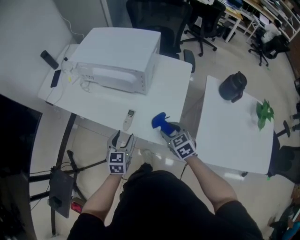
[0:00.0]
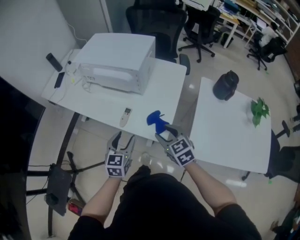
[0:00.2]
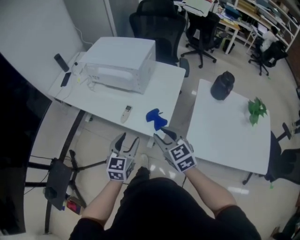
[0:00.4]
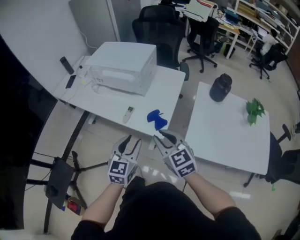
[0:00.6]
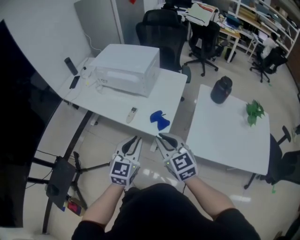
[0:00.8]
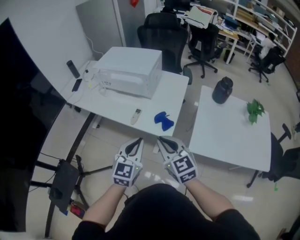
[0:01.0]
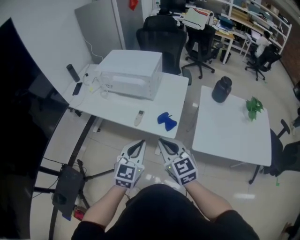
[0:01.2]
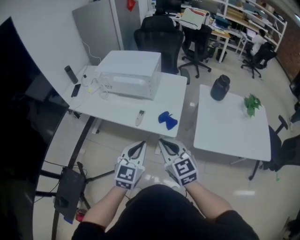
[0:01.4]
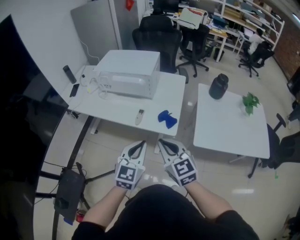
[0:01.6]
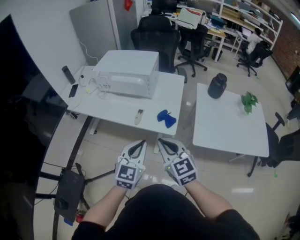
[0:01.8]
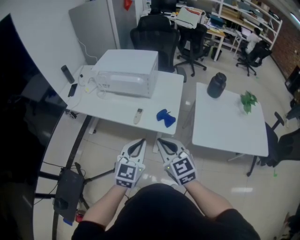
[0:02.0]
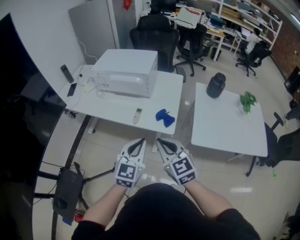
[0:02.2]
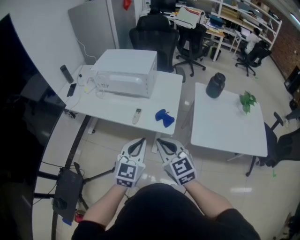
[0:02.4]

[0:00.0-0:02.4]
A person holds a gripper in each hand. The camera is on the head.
0.0 to 1.2 s: The left gripper heads backward and upward, covering some 25 cm, turns by approximately 20 degrees, and closes its fingers; the right gripper travels backward, upward and to the left by roughly 30 cm, turns by about 30 degrees, and closes its fingers.
1.2 to 2.4 s: There are only small adjustments of the grippers.

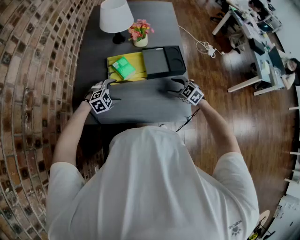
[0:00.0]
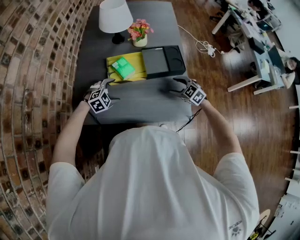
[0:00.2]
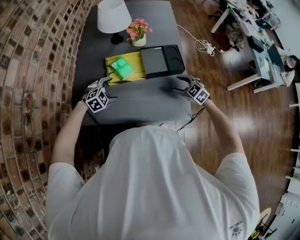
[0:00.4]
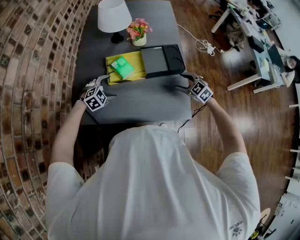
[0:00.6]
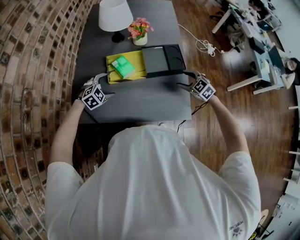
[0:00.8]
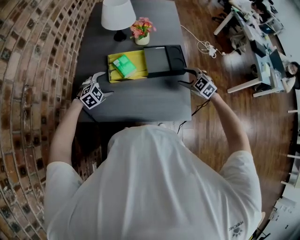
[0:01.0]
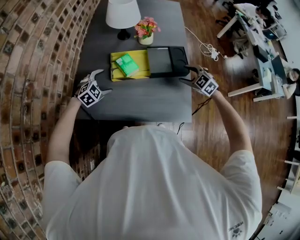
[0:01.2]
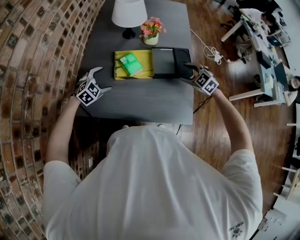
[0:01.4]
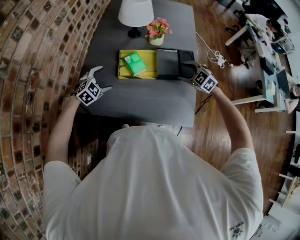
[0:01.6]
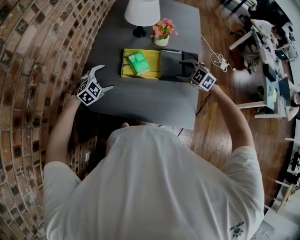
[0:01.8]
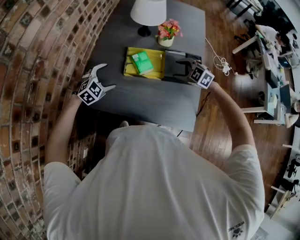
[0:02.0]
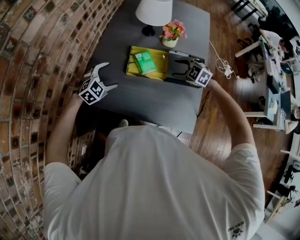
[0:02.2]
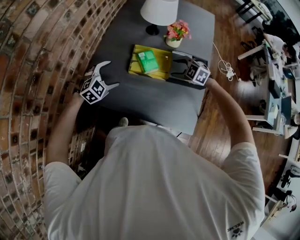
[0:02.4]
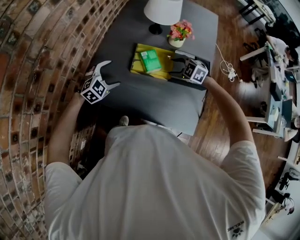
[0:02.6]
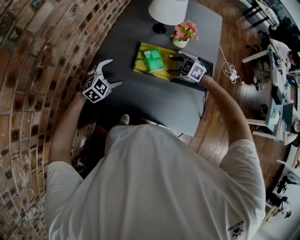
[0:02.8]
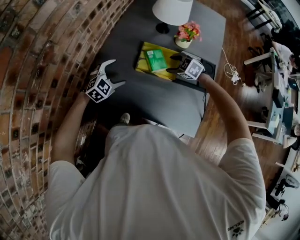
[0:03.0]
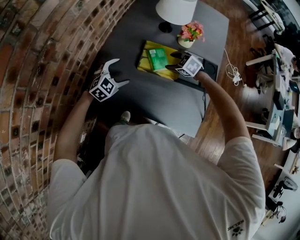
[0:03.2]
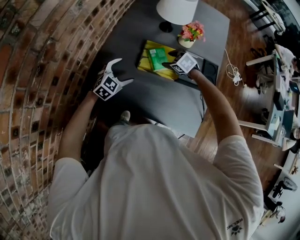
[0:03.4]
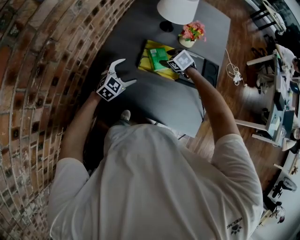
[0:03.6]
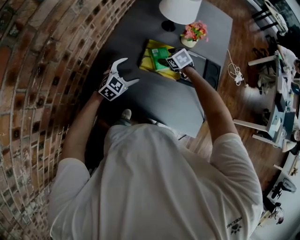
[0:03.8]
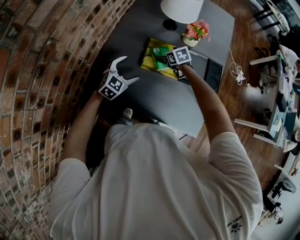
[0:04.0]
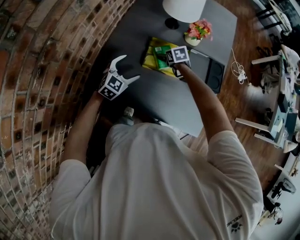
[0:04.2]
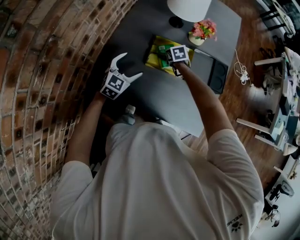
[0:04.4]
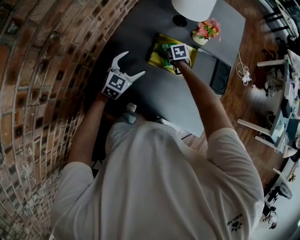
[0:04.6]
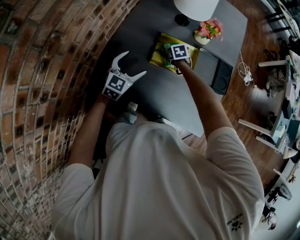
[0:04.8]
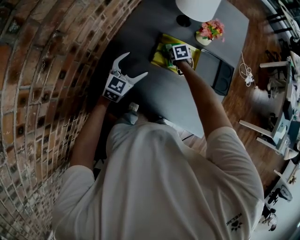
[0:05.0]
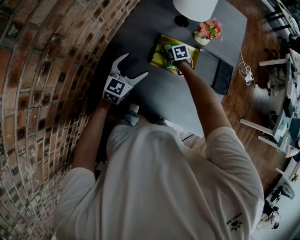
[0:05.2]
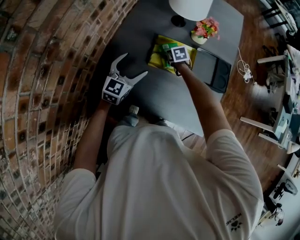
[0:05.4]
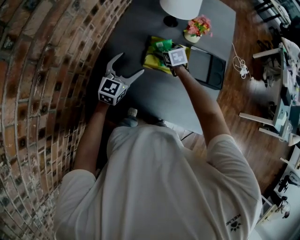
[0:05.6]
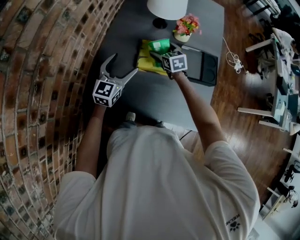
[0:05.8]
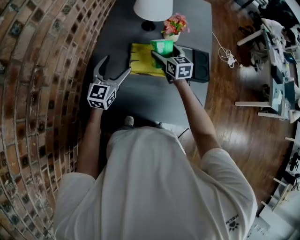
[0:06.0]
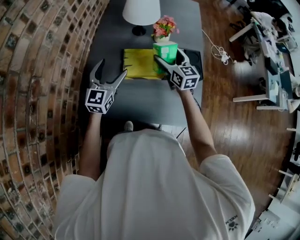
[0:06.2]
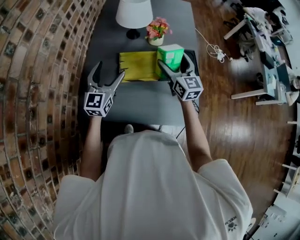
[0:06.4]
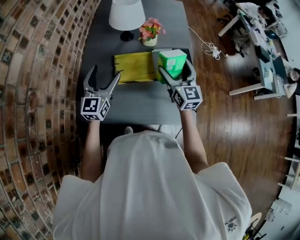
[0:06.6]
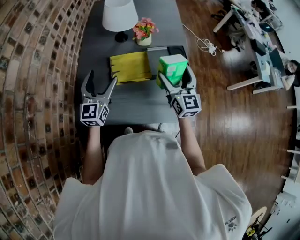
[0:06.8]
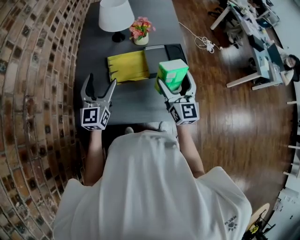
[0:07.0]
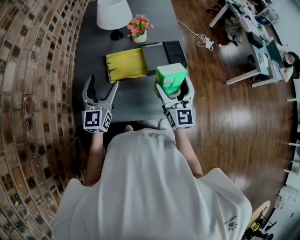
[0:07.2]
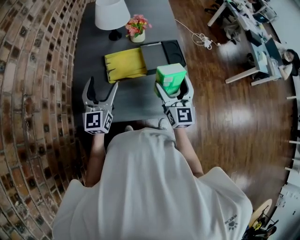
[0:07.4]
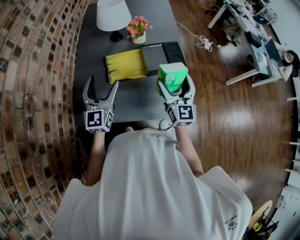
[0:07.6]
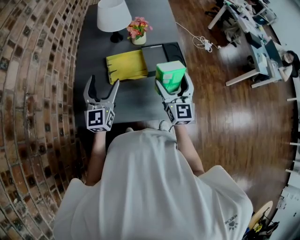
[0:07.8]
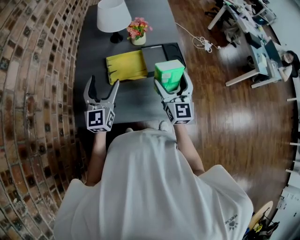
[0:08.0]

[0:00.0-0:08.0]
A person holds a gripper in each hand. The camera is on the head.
0.0 to 1.6 s: The left gripper moves to the left and upward, some 10 cm, and turns by roughly 20 degrees, while the right gripper goes some 10 cm upward and forward.
1.6 to 3.2 s: The right gripper shifts approximately 20 cm to the left, forward and downward.
3.2 to 4.8 s: The right gripper travels downward, forward and to the left by roughly 15 cm, twists approximately 40 degrees clockwise, seen from behind, and opens up. The left gripper swivels some 20 degrees.
4.8 to 6.4 s: The left gripper heads upward, covering approximately 10 cm, and changes its angle by some 20 degrees. Meanwhile the right gripper goes approximately 35 cm upward and to the right, and points its fingers approximately 60 degrees further upward.
6.4 to 8.0 s: The right gripper goes roughly 15 cm backward and to the right, and rotates about 20 degrees. The left gripper heads backward, covering some 5 cm.

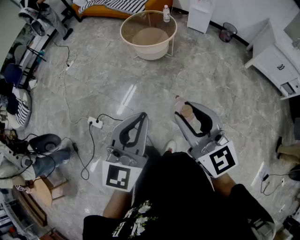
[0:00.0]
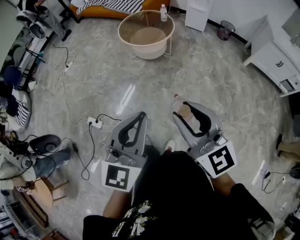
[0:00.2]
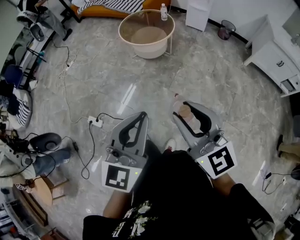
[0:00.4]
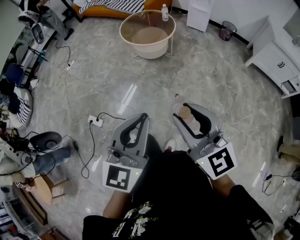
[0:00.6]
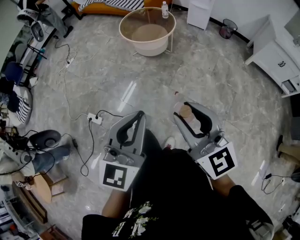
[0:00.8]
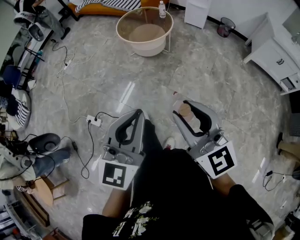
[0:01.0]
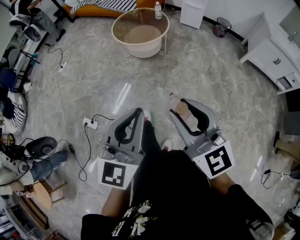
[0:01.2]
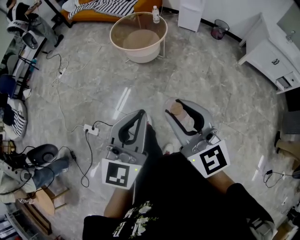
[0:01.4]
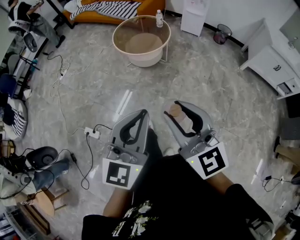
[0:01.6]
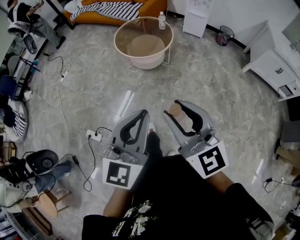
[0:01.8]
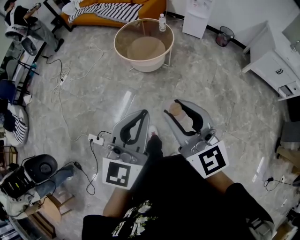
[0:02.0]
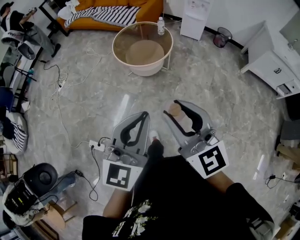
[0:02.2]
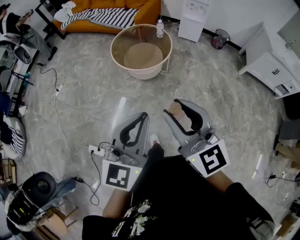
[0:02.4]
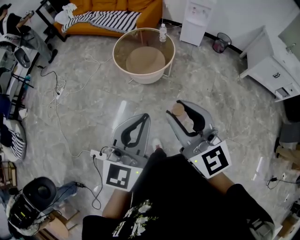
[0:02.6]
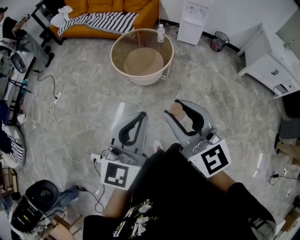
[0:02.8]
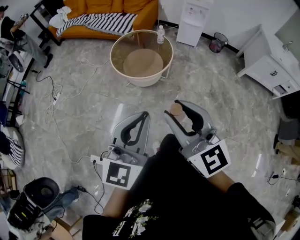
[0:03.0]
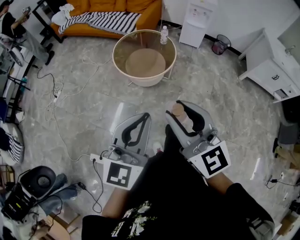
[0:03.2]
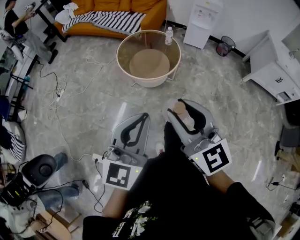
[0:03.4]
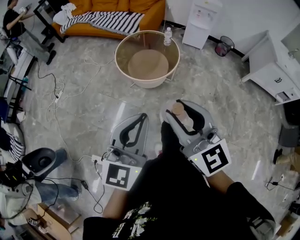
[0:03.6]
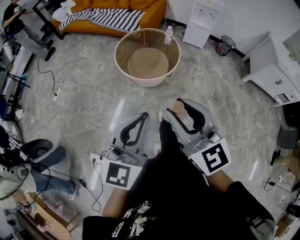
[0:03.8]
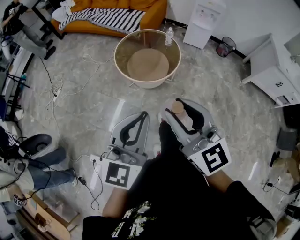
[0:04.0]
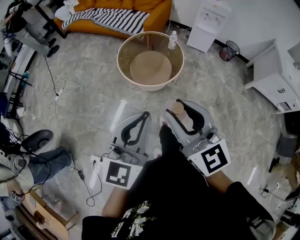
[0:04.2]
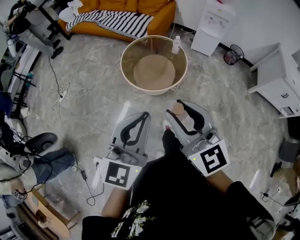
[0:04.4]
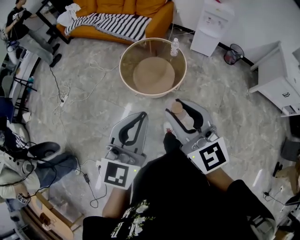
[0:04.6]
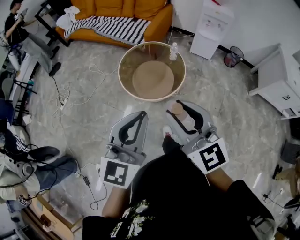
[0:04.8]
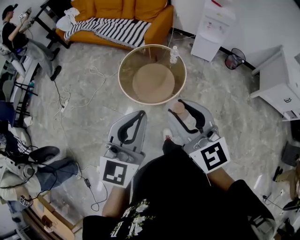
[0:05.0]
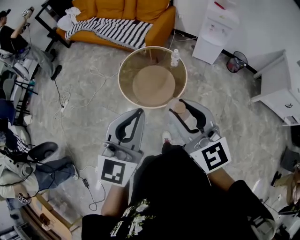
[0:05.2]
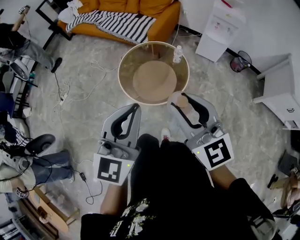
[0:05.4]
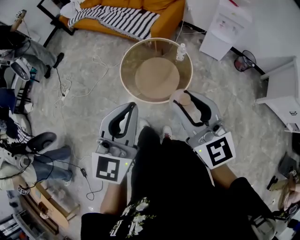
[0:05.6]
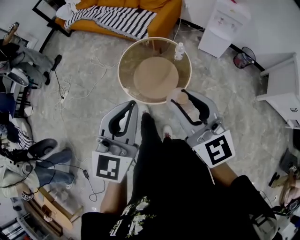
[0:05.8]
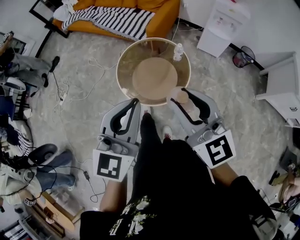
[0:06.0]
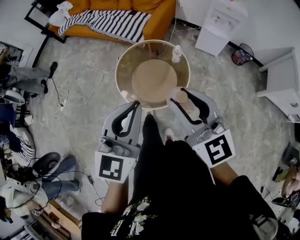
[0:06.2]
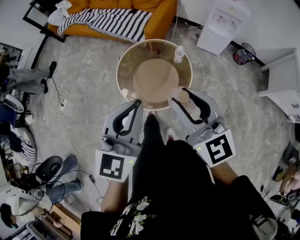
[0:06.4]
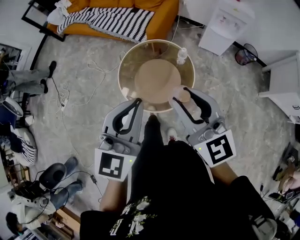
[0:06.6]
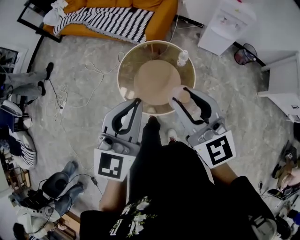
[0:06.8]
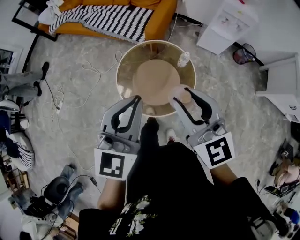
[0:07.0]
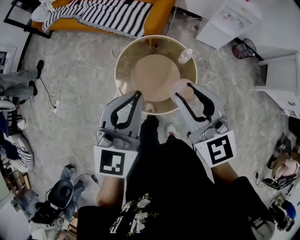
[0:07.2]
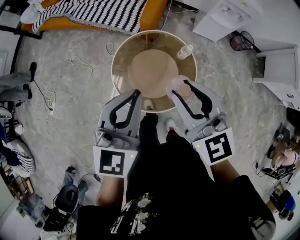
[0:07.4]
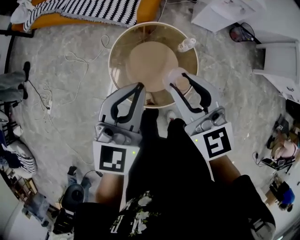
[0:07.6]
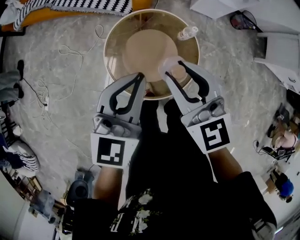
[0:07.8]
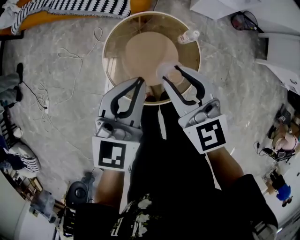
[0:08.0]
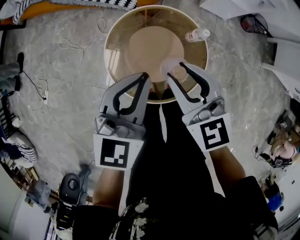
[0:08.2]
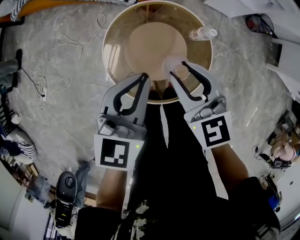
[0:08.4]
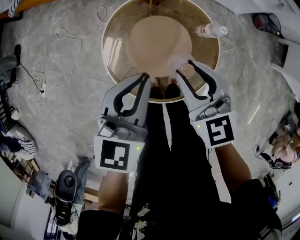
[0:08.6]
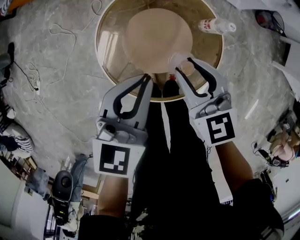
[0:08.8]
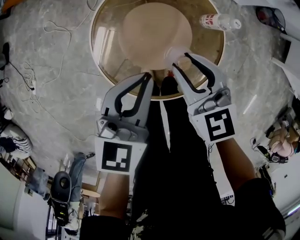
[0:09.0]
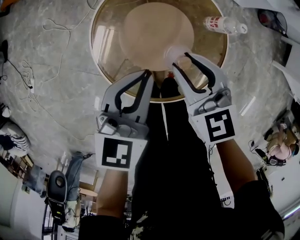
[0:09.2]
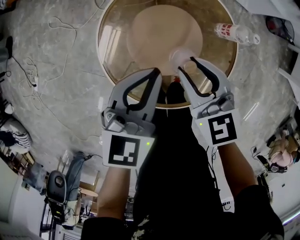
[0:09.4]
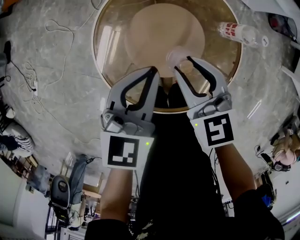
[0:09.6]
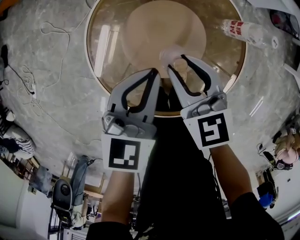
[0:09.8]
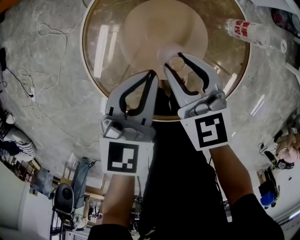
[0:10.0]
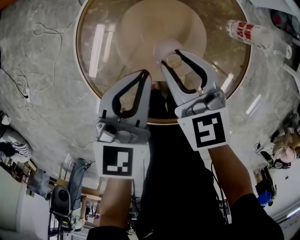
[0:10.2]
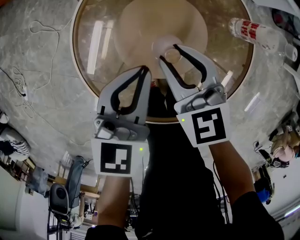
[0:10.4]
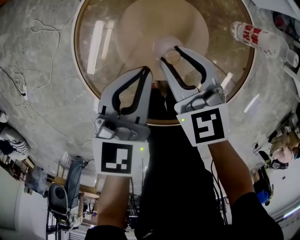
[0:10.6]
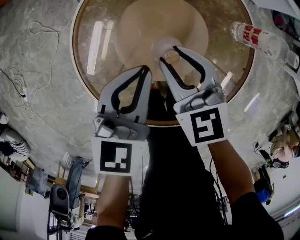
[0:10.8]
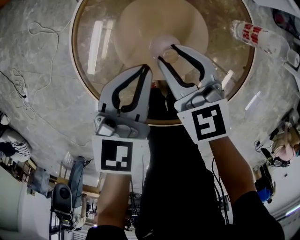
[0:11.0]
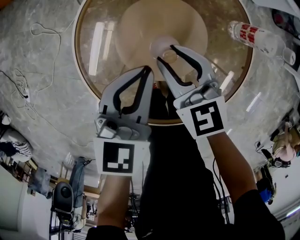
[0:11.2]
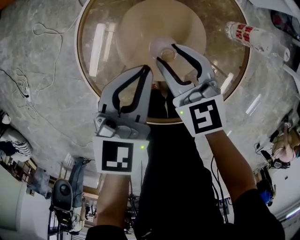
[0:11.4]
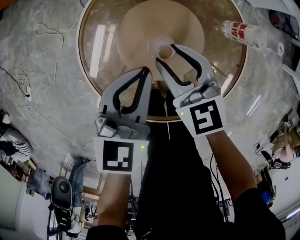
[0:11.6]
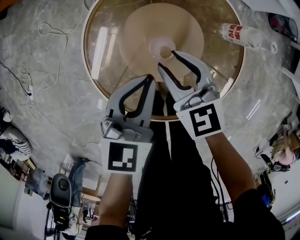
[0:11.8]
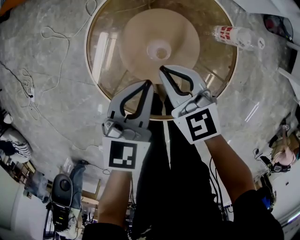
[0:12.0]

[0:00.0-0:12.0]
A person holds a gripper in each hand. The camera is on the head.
0.0 to 1.6 s: Both grippers travel together forward, about 10 cm.
1.6 to 3.0 s: The two grippers go roughly 30 cm forward and to the left.
3.0 to 4.4 s: The grippers both shift forward by roughly 20 cm.
4.4 to 6.0 s: The right gripper goes about 30 cm forward and to the right. The left gripper goes some 30 cm forward.
6.0 to 7.6 s: The right gripper goes about 35 cm forward and to the left. The left gripper shifts about 35 cm forward.
7.6 to 9.0 s: The two grippers go roughly 35 cm downward. The left gripper rotates about 20 degrees.
9.0 to 10.4 s: Both grippers travel together downward, approximately 20 cm.
10.4 to 12.0 s: Both grippers move upward, about 5 cm. The right gripper closes.

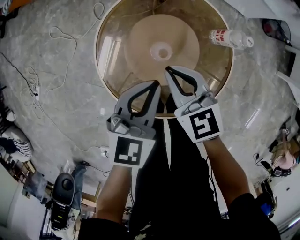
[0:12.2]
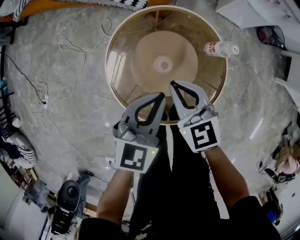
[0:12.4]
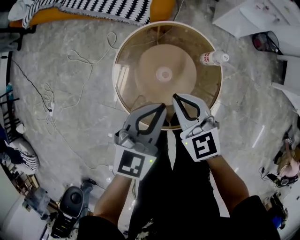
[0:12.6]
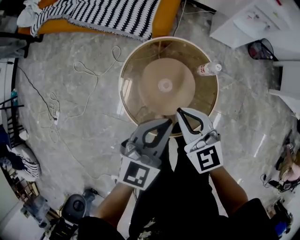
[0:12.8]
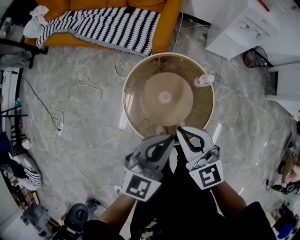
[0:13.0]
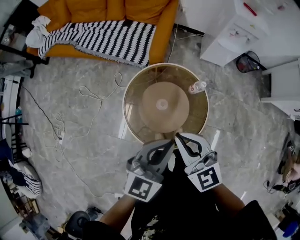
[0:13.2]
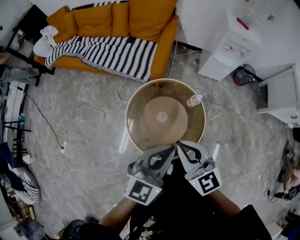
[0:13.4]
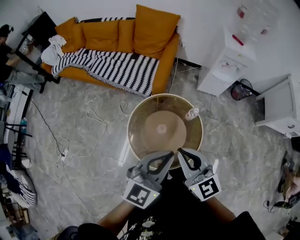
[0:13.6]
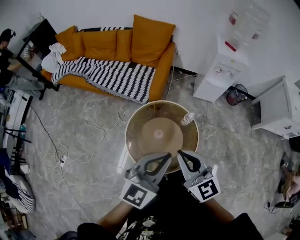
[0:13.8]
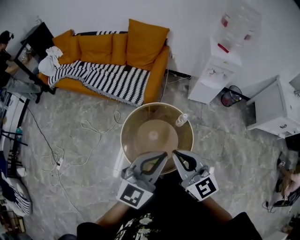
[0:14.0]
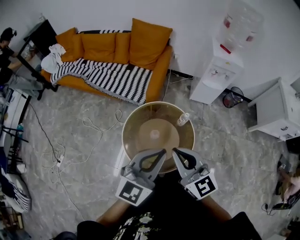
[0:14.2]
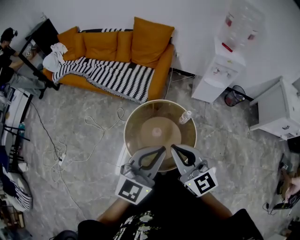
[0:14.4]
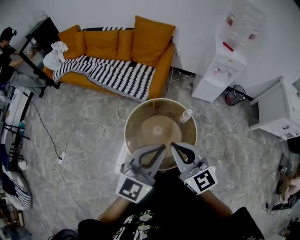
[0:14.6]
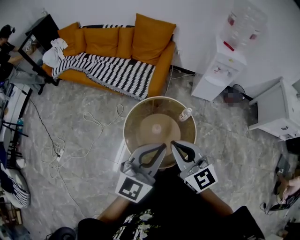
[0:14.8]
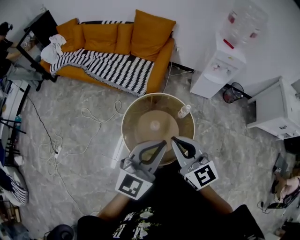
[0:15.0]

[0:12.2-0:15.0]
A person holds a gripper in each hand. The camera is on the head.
12.2 to 13.6 s: Both grippers travel together upward, about 50 cm. The right gripper turns by roughly 30 degrees; the left gripper swivels roughly 30 degrees.
13.6 to 15.0 s: The left gripper heads upward, covering about 5 cm.
